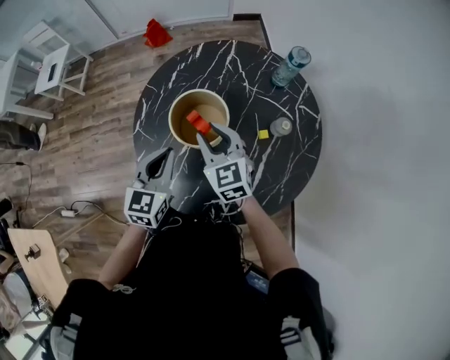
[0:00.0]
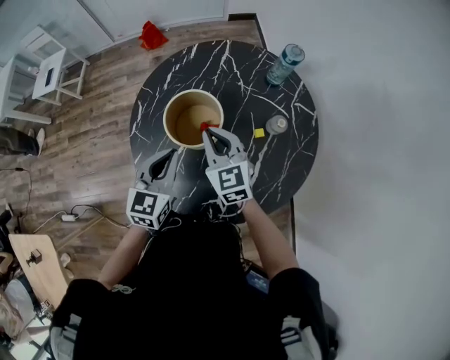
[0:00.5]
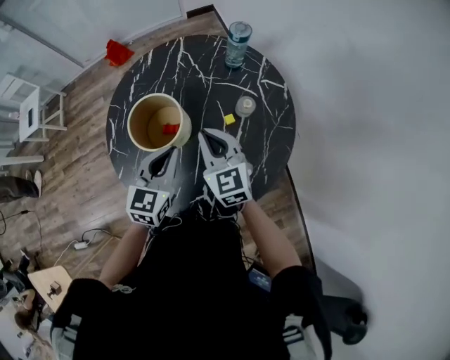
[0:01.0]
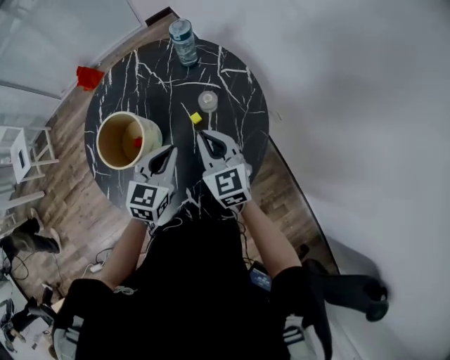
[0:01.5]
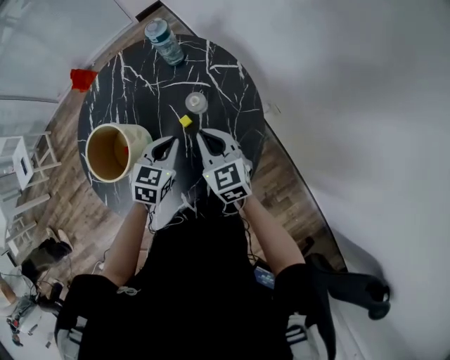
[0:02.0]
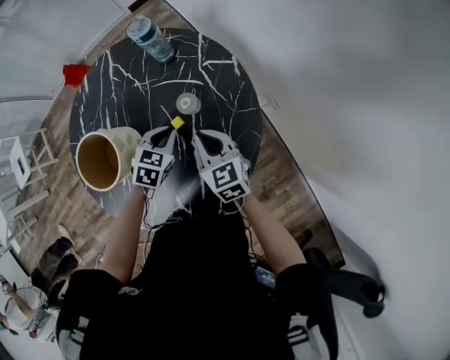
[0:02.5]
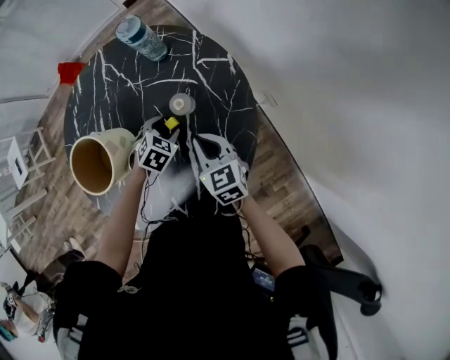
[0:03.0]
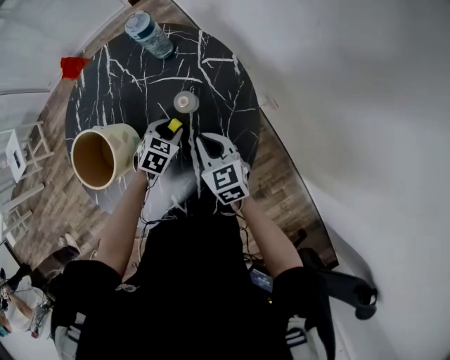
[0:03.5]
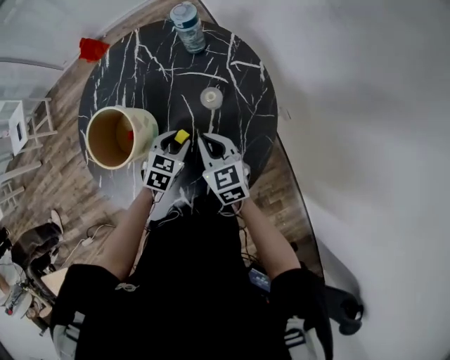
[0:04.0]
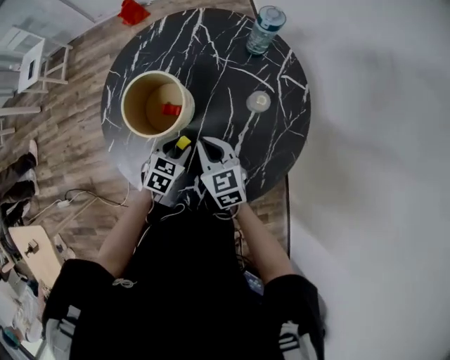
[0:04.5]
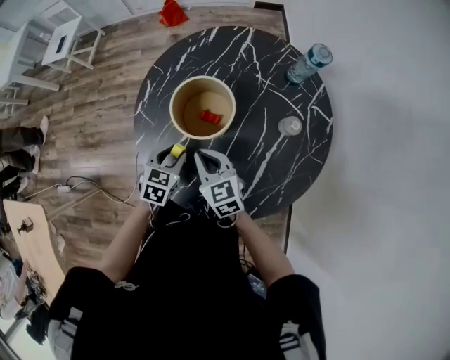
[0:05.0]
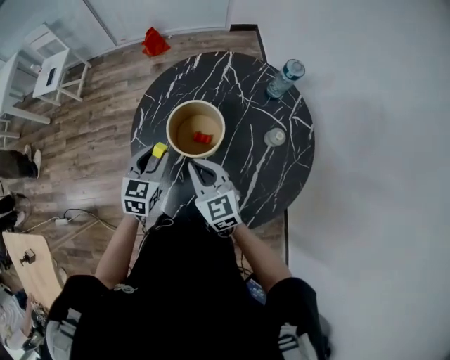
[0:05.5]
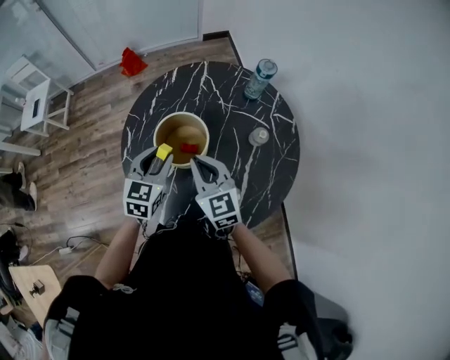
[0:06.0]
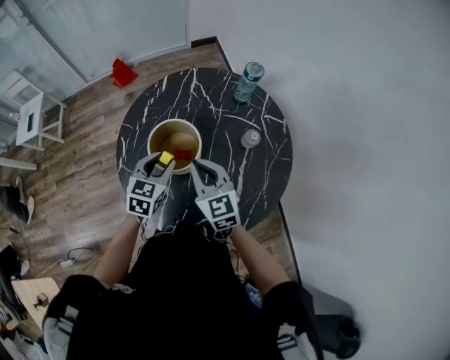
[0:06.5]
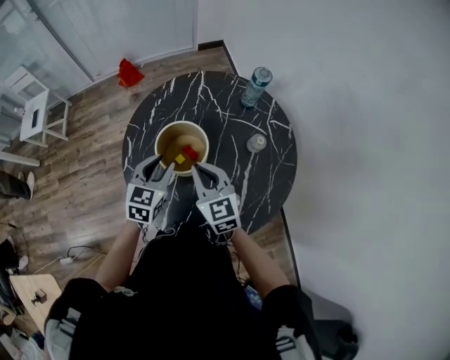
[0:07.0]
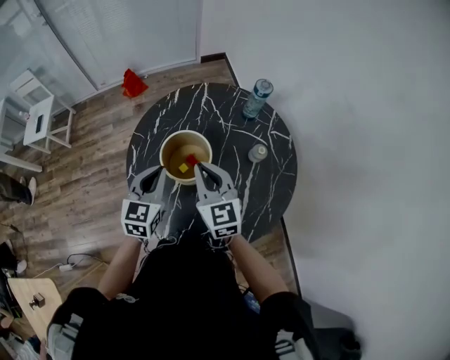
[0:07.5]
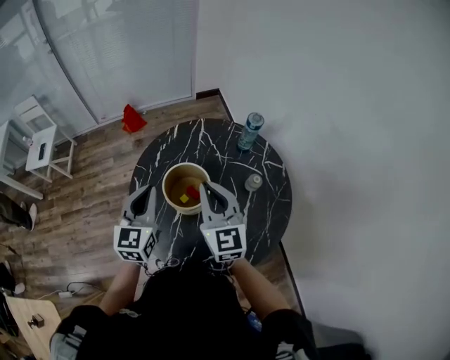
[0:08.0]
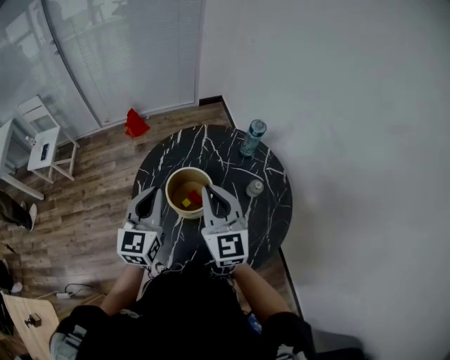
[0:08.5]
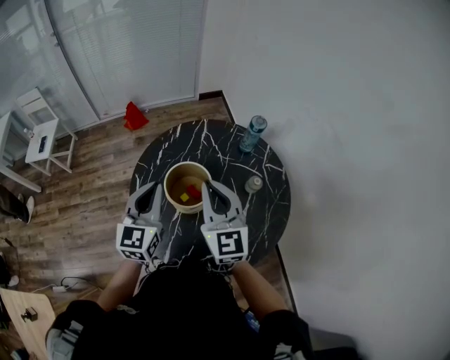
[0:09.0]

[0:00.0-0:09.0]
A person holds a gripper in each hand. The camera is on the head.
0:00.0 to 0:02.0: The left gripper changes place by about 30 cm, and swivels some 40 degrees. The right gripper changes place by about 30 cm, rotates about 30 degrees, and closes.
0:02.0 to 0:04.5: The right gripper moves to the left and backward, some 15 cm, and turns by roughly 20 degrees. Meanwhile the left gripper shifts roughly 20 cm to the left, downward and backward, and opens up.
0:04.5 to 0:07.0: Both grippers travel together upward and to the left, roughly 20 cm. The left gripper swivels approximately 20 degrees.
0:07.0 to 0:09.0: The grippers both shift upward by some 15 cm. The right gripper swivels roughly 20 degrees; the left gripper turns by about 20 degrees, and closes up.

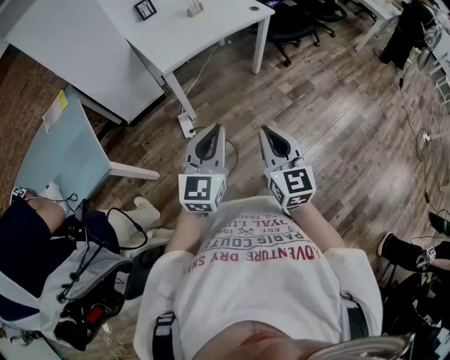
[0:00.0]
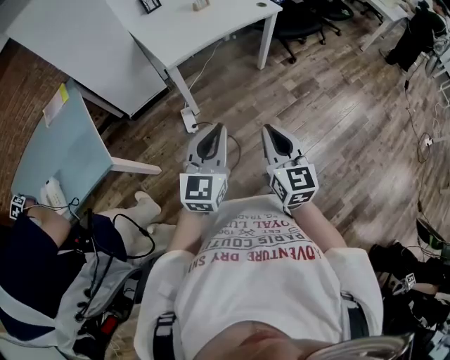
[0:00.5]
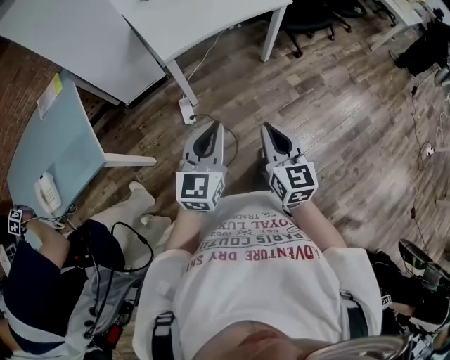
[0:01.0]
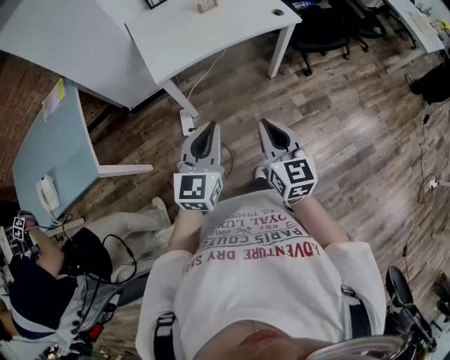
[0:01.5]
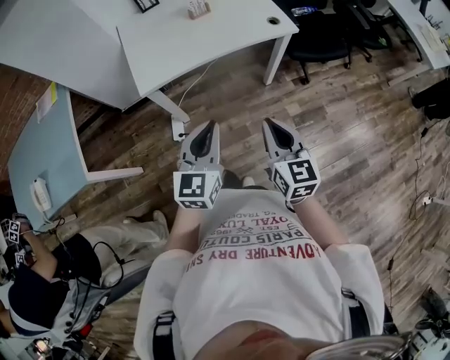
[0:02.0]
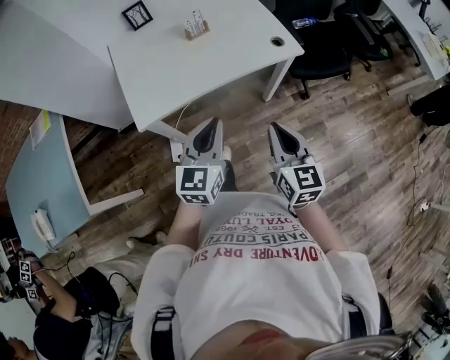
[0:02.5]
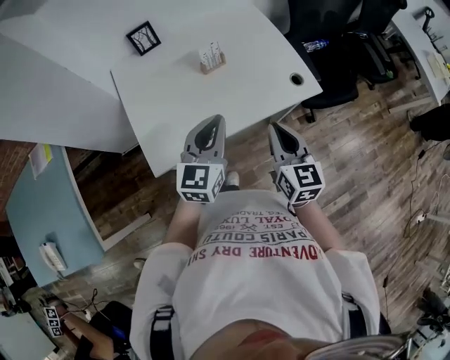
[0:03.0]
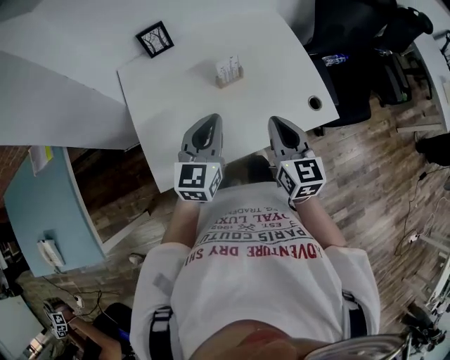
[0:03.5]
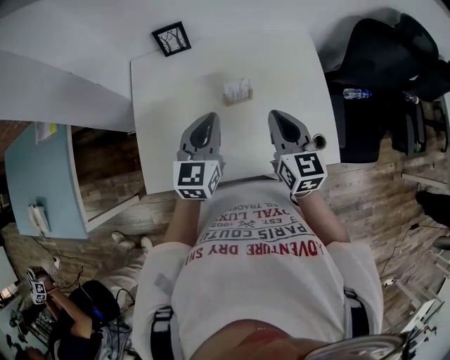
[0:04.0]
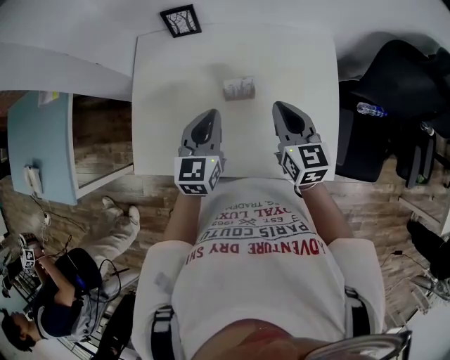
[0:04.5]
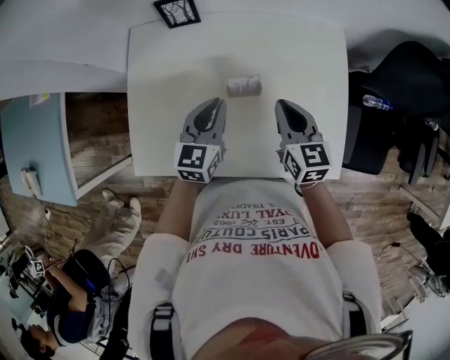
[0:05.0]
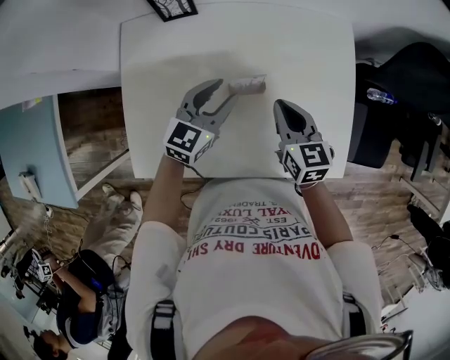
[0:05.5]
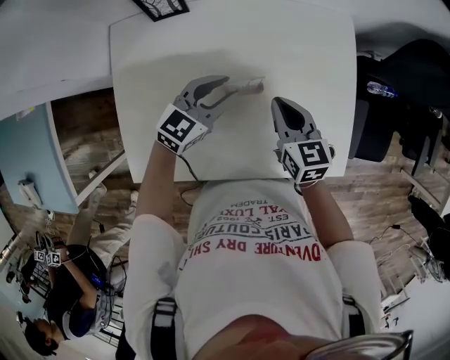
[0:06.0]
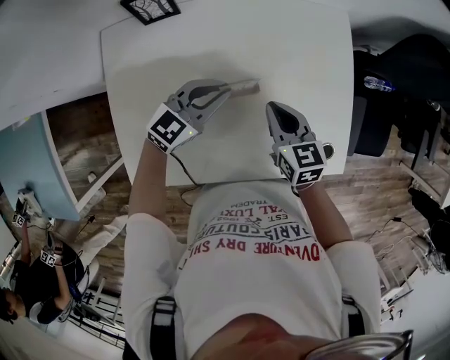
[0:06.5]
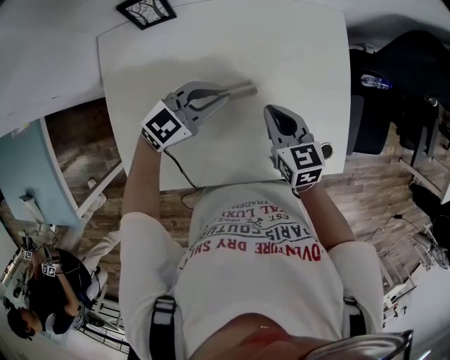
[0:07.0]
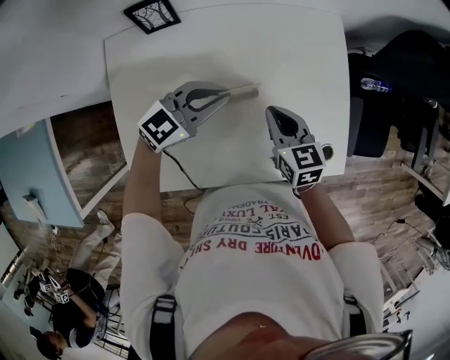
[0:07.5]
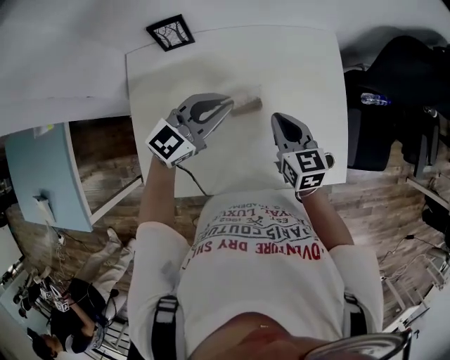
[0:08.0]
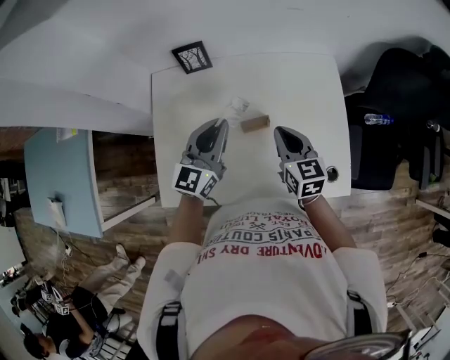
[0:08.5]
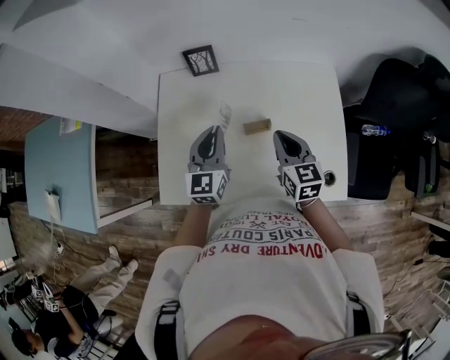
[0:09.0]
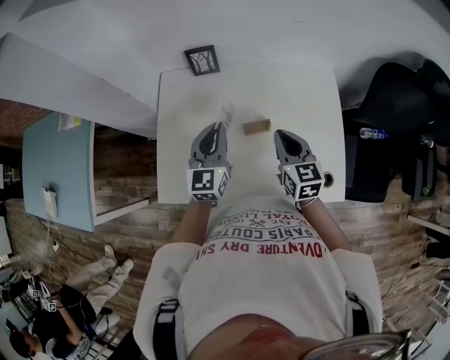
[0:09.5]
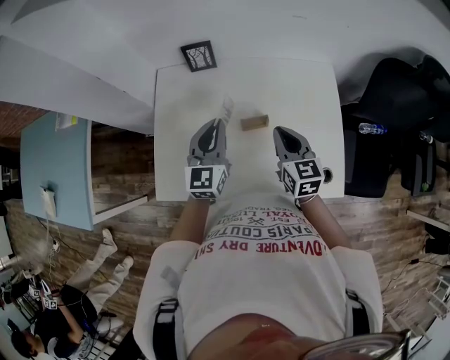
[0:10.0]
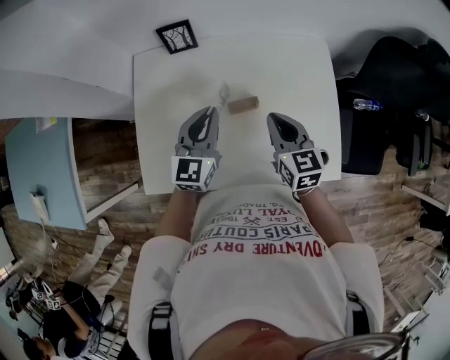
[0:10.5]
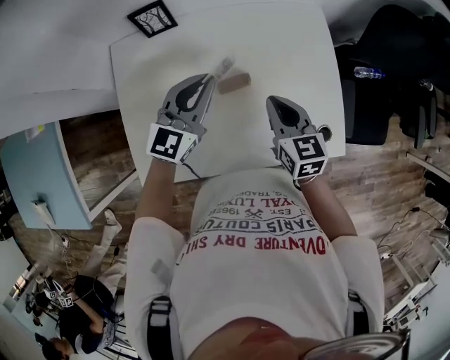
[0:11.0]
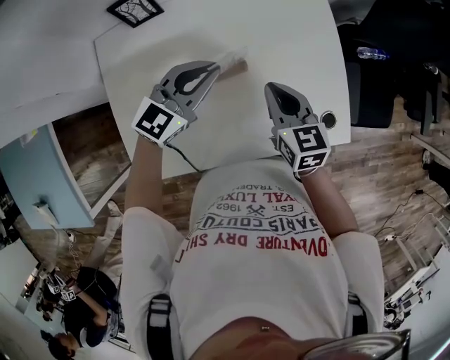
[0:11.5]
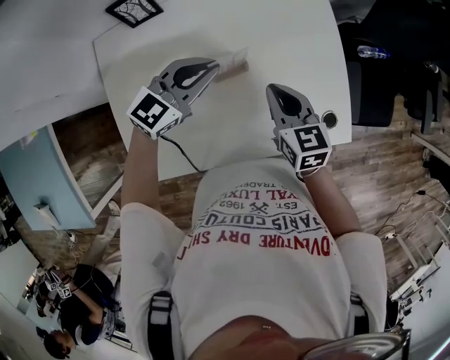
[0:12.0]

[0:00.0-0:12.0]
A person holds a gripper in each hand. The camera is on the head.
0:00.0 to 0:02.0: Both grippers travel together forward and to the right, approximately 35 cm.
0:02.0 to 0:04.0: Both grippers are carried forward, about 60 cm.
0:04.0 to 0:06.0: Both grippers travel together downward and forward, about 20 cm. The left gripper changes its angle by roughly 30 degrees, and opens.
0:06.0 to 0:08.0: The left gripper heads upward, covering roughly 10 cm, and closes its fingers.
0:08.0 to 0:10.0: The right gripper goes approximately 5 cm upward, while the left gripper moves some 10 cm, and rotates roughly 50 degrees.
0:10.0 to 0:12.0: The right gripper moves downward, approximately 10 cm, while the left gripper moves approximately 15 cm, and changes its angle by some 50 degrees.

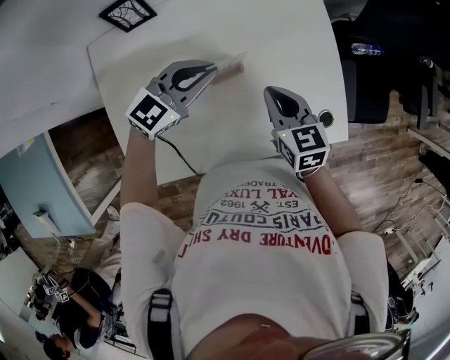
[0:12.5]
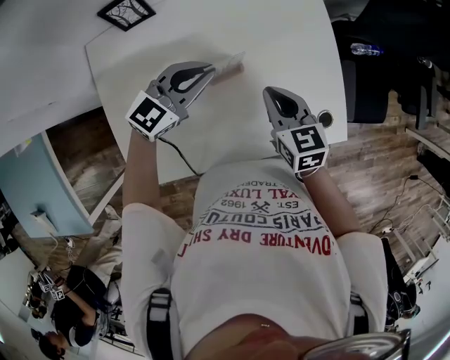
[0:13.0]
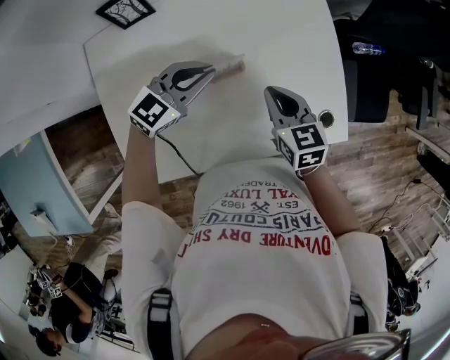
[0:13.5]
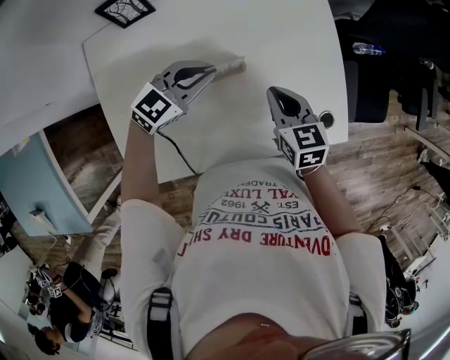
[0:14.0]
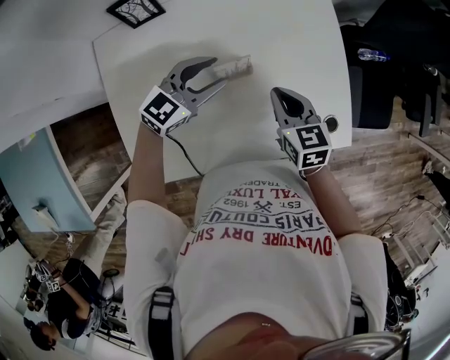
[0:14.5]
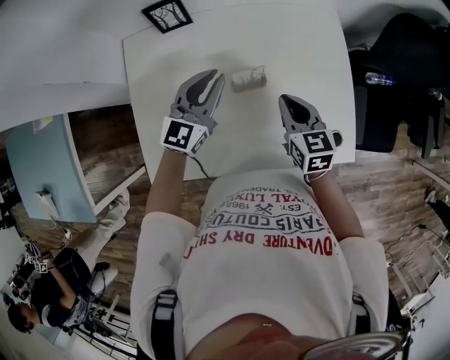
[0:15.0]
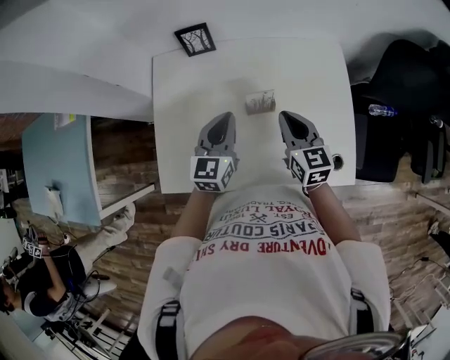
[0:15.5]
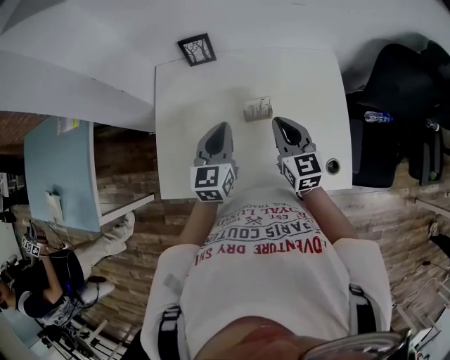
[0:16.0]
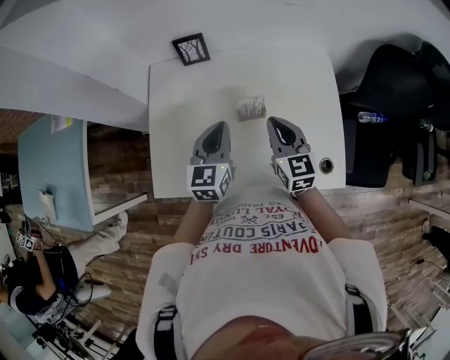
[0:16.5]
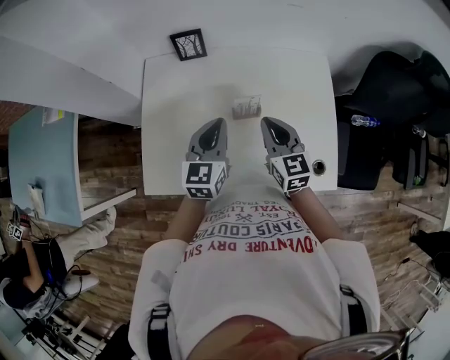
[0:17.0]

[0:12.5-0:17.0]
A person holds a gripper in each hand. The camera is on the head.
0:12.5 to 0:14.5: The left gripper opens its fingers.
0:14.5 to 0:17.0: Both grippers travel together upward, about 10 cm. The right gripper rotates approximately 20 degrees; the left gripper turns by approximately 50 degrees, and closes up.

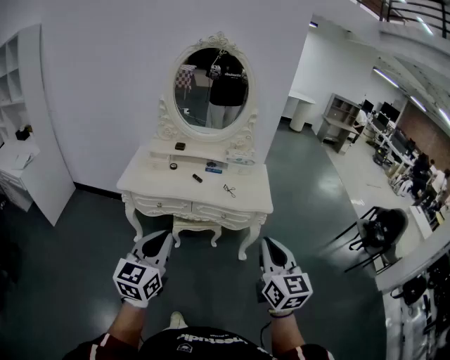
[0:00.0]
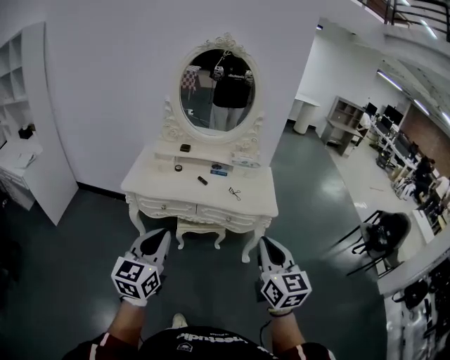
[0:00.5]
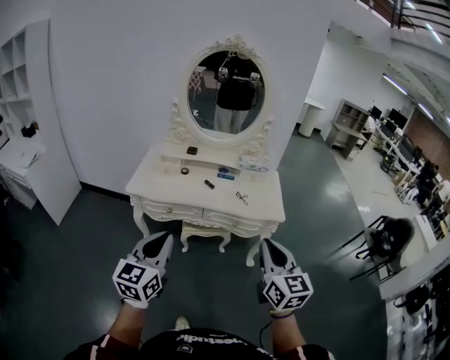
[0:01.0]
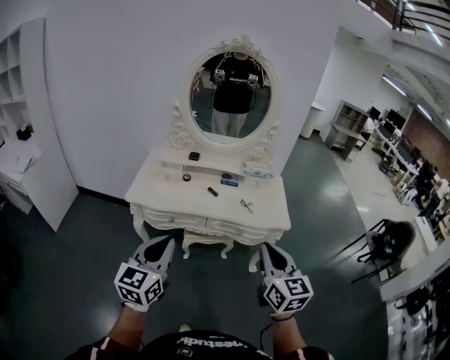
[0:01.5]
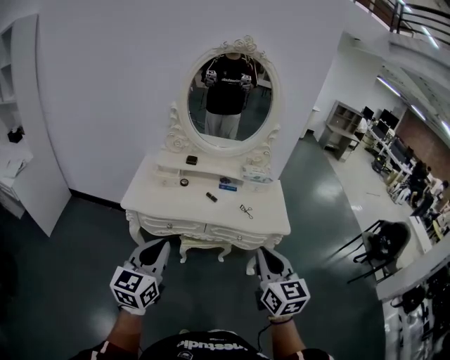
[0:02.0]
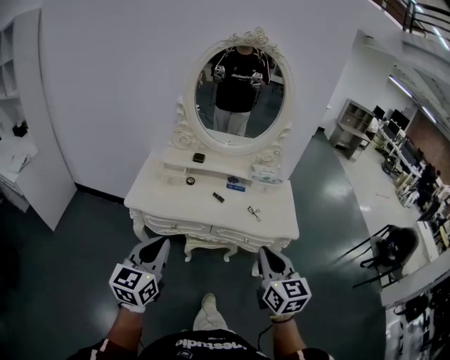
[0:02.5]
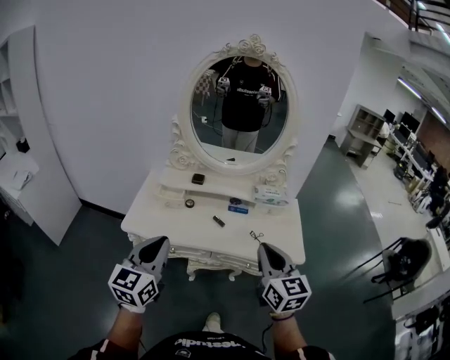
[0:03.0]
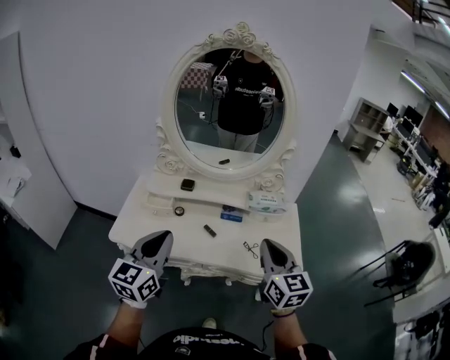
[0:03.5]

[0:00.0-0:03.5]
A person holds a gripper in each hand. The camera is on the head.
0:00.0 to 0:02.0: The grippers both shift to the left and forward by some 15 cm.
0:02.0 to 0:03.5: Both grippers move forward, roughly 25 cm.
